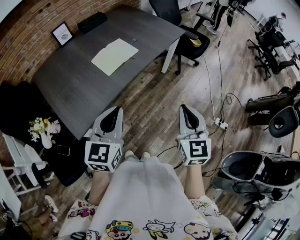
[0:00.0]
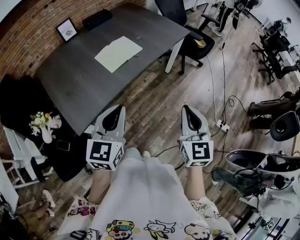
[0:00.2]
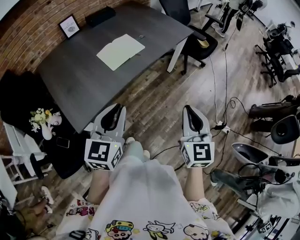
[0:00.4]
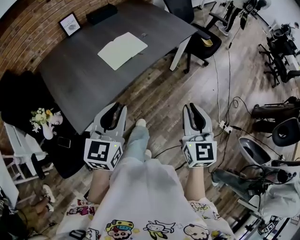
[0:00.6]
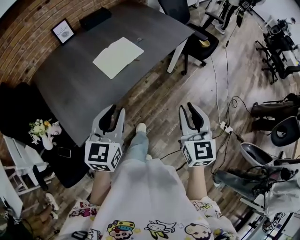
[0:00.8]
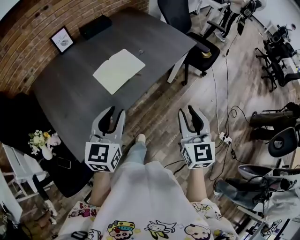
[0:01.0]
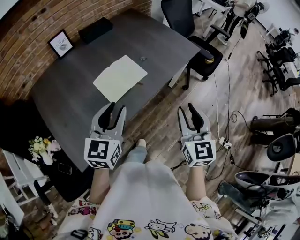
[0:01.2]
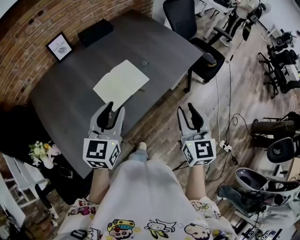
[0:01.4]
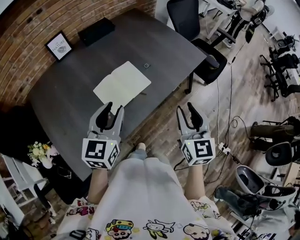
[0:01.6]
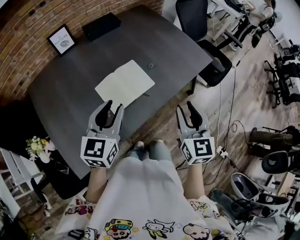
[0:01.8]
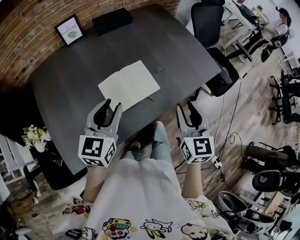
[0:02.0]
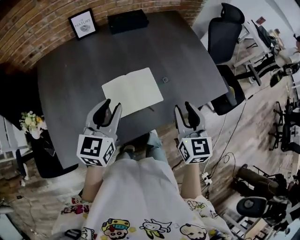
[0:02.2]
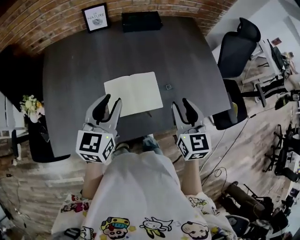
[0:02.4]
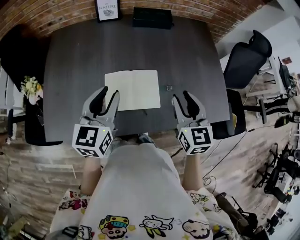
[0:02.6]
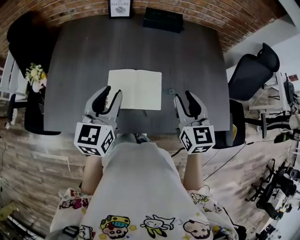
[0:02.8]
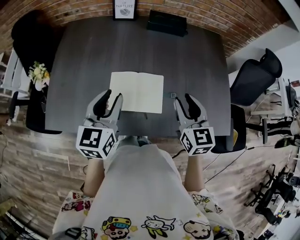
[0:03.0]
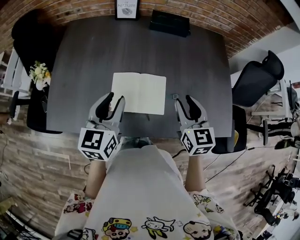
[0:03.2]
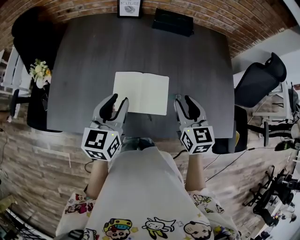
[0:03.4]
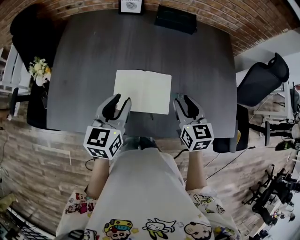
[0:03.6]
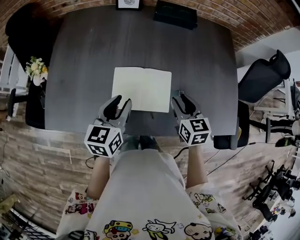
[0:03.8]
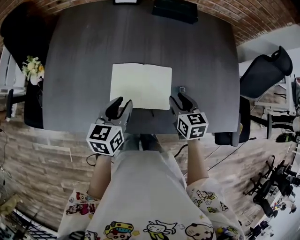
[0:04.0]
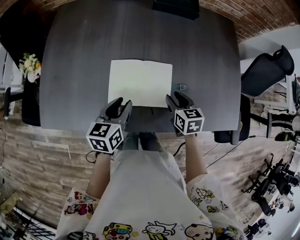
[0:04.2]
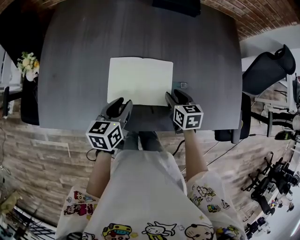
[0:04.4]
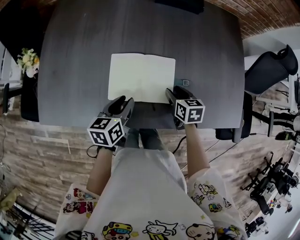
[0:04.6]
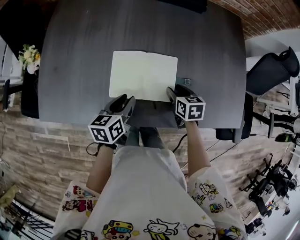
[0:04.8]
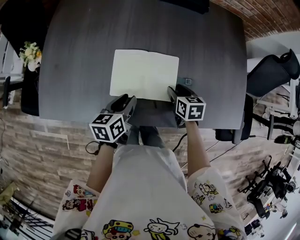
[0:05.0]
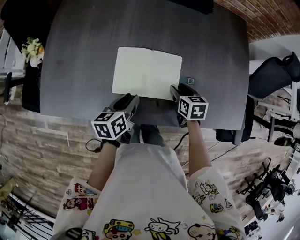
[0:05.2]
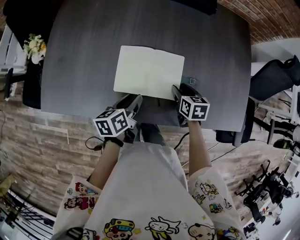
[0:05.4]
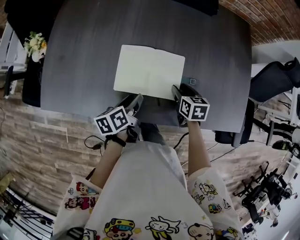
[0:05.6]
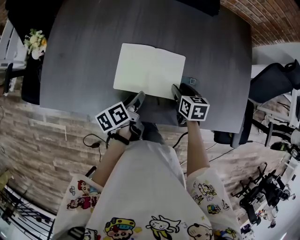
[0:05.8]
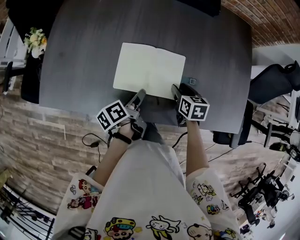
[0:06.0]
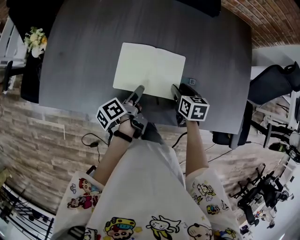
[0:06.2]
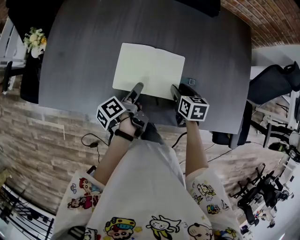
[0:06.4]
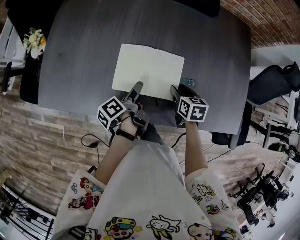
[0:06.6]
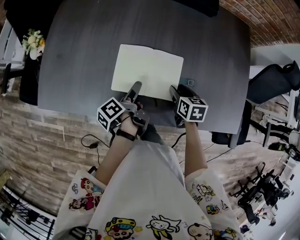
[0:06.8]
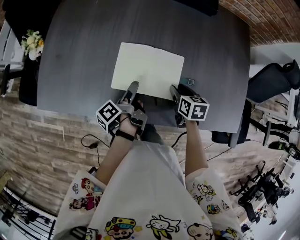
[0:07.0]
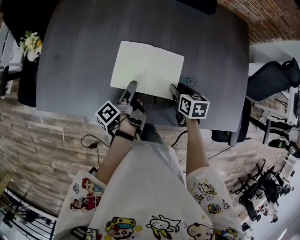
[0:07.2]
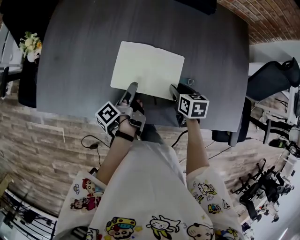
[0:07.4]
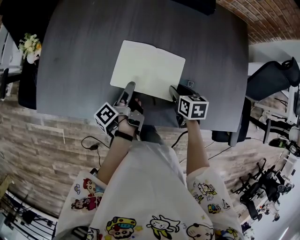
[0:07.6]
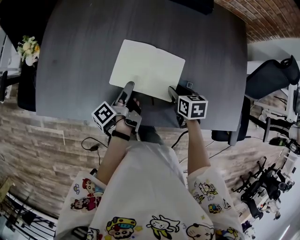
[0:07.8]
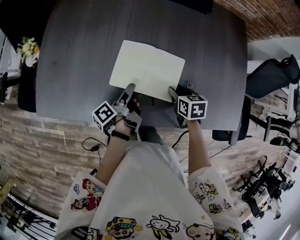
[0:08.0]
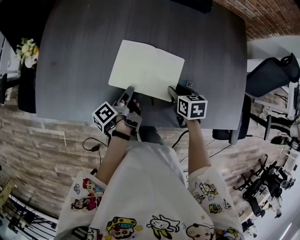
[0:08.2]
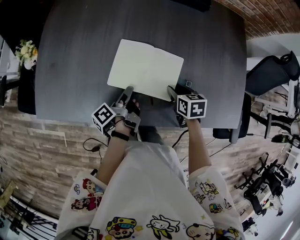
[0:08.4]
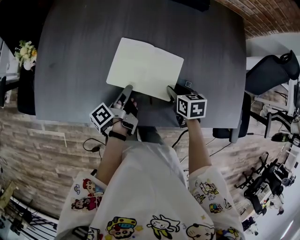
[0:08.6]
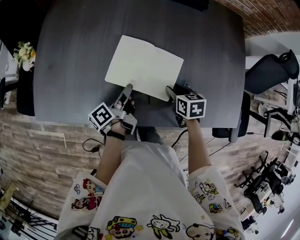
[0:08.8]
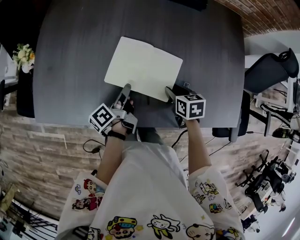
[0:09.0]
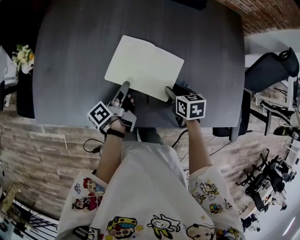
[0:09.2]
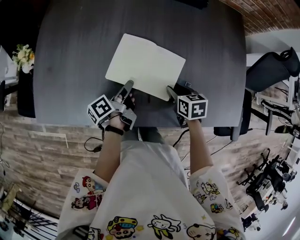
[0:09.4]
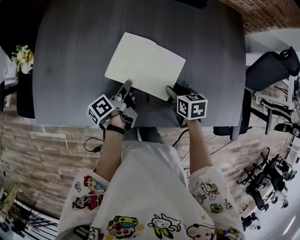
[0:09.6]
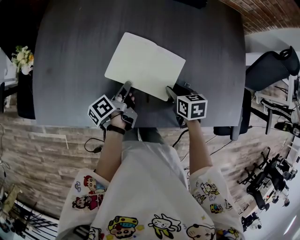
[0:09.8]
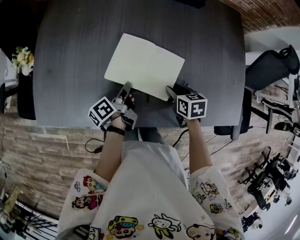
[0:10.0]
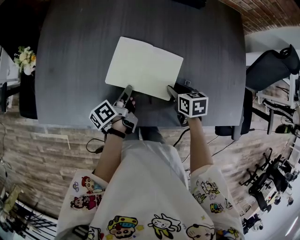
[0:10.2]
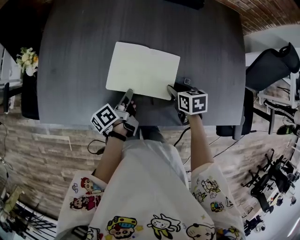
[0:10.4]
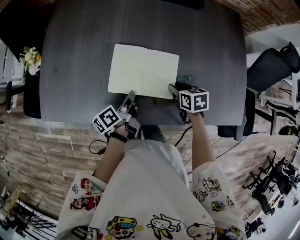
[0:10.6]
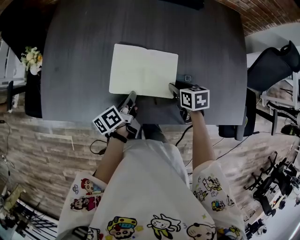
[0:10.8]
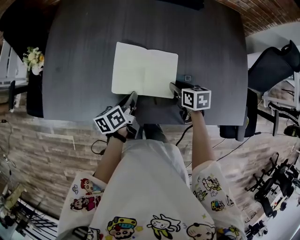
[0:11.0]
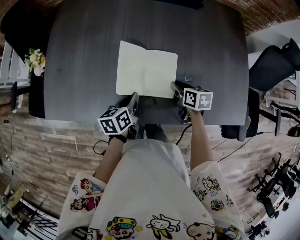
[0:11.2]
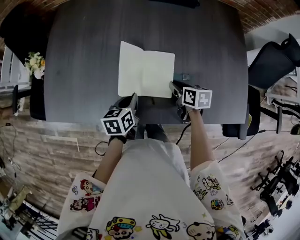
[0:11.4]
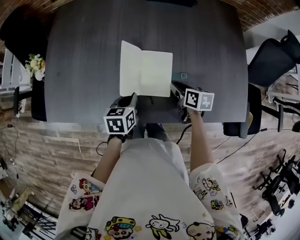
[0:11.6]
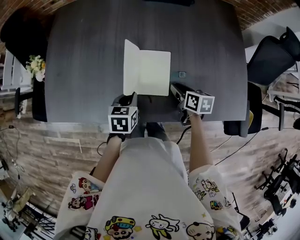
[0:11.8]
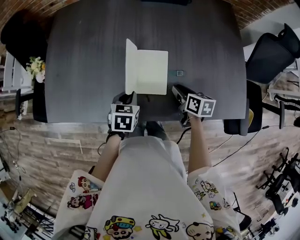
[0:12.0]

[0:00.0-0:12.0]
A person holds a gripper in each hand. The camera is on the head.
0:00.0 to 0:01.6: Both grippers move forward, roughly 30 cm. The right gripper opens up.
0:01.6 to 0:03.0: The right gripper shifts by about 25 cm, and changes its angle by some 50 degrees. Meanwhile the left gripper changes place by approximately 10 cm, and rotates approximately 50 degrees.
0:03.0 to 0:04.4: Both grippers travel together downward, roughly 20 cm. The left gripper rotates approximately 30 degrees. The right gripper turns by some 30 degrees.
0:04.4 to 0:06.0: The left gripper shifts approximately 5 cm downward, twists roughly 50 degrees counterclockwise, seen from behind, and opens.
0:06.0 to 0:07.6: The left gripper rotates some 30 degrees.
0:07.6 to 0:09.0: The left gripper turns by about 20 degrees.
0:09.0 to 0:10.4: The left gripper closes its fingers.
0:10.4 to 0:12.0: The left gripper twists some 70 degrees clockwise, seen from behind; the right gripper moves roughly 5 cm, and turns by approximately 20 degrees.

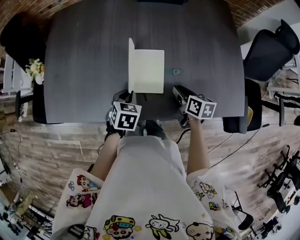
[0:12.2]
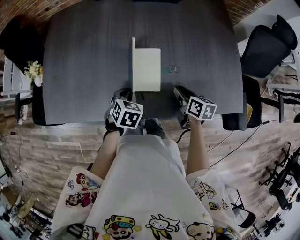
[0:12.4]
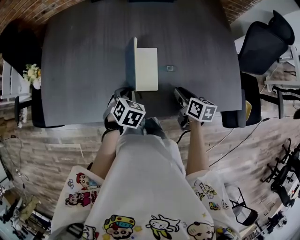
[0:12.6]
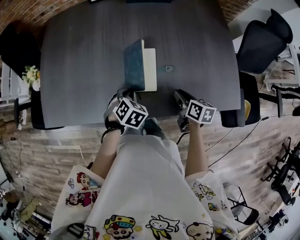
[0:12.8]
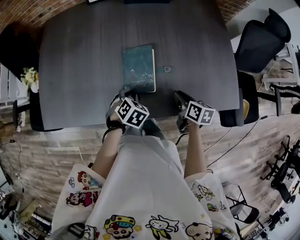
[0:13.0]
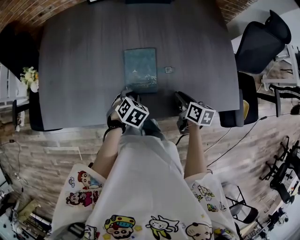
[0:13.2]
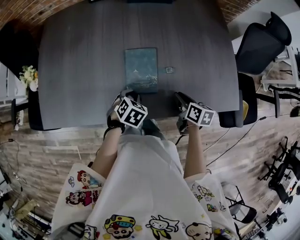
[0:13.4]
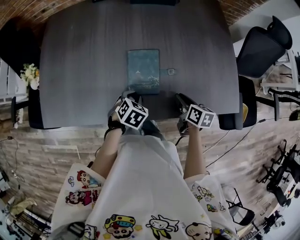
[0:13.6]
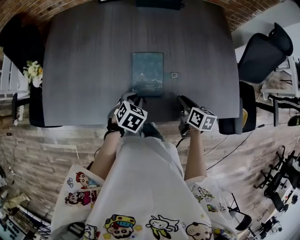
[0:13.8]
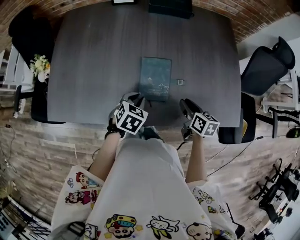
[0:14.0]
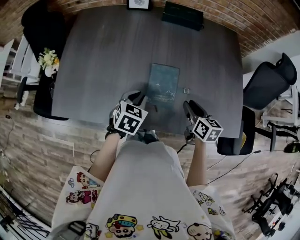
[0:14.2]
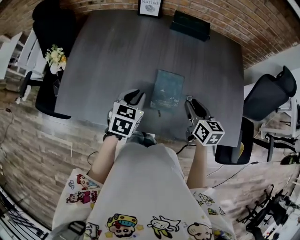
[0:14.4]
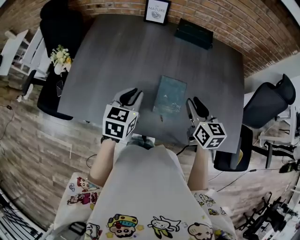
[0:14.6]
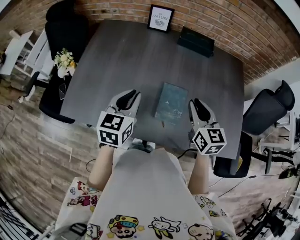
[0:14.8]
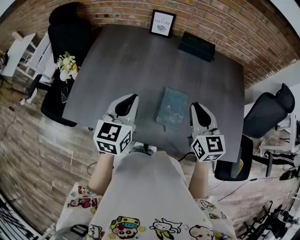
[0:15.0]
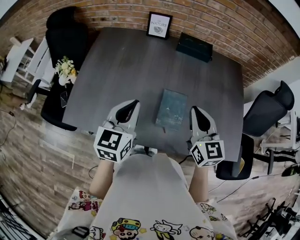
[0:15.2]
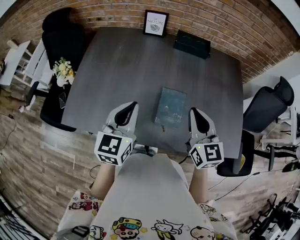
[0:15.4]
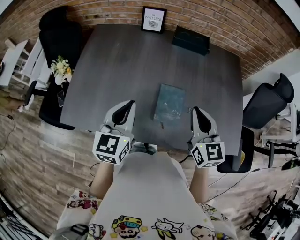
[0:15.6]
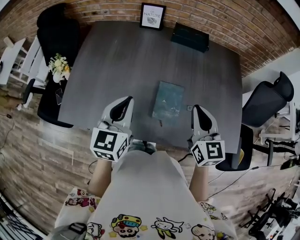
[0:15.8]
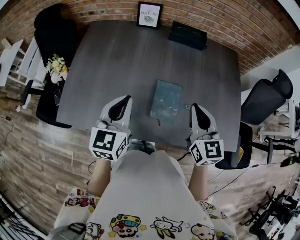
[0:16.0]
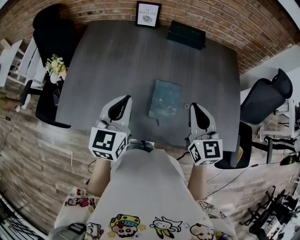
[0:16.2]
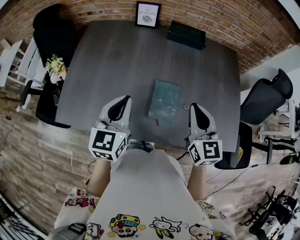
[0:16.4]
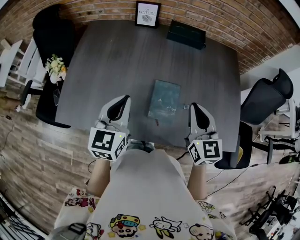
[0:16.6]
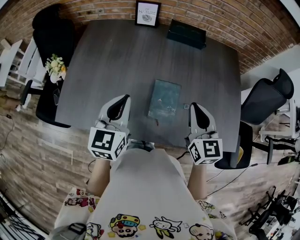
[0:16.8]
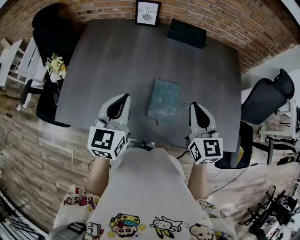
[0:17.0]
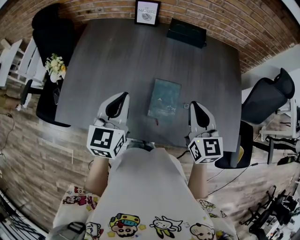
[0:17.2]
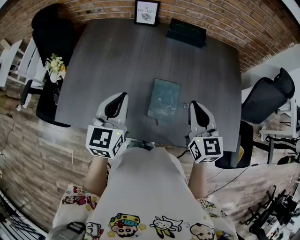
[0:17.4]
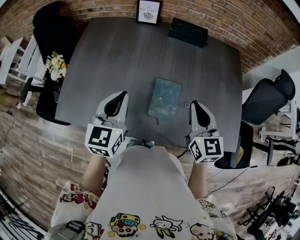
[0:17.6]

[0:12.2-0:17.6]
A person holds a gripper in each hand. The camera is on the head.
0:12.2 to 0:13.6: The right gripper changes place by about 5 cm. The left gripper travels to the right by roughly 5 cm.
0:13.6 to 0:15.0: The two grippers go roughly 30 cm upward and to the left. The left gripper angles its fingers upward, by approximately 50 degrees. The right gripper rolls counterclockwise, seen from behind, by approximately 50 degrees.
0:15.0 to 0:17.6: The grippers make only small movements.

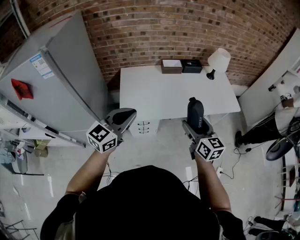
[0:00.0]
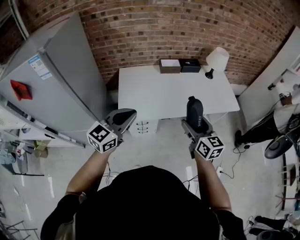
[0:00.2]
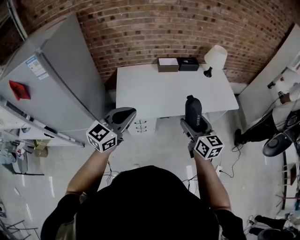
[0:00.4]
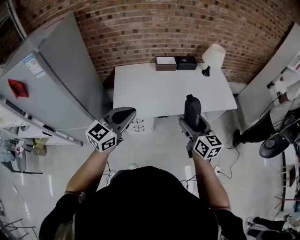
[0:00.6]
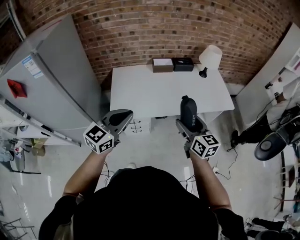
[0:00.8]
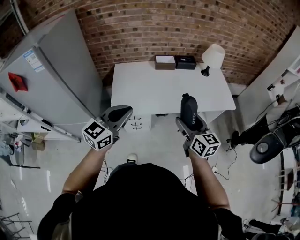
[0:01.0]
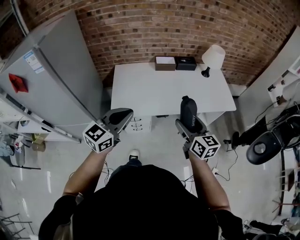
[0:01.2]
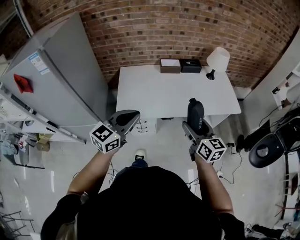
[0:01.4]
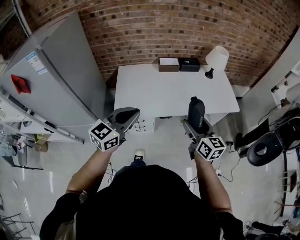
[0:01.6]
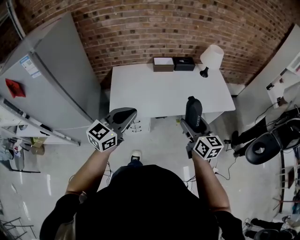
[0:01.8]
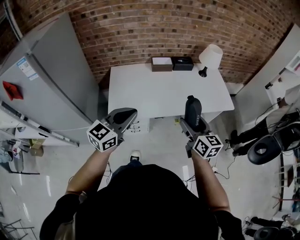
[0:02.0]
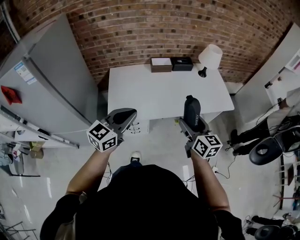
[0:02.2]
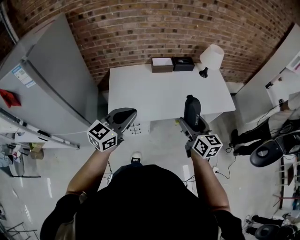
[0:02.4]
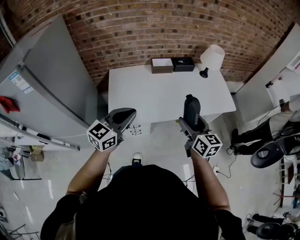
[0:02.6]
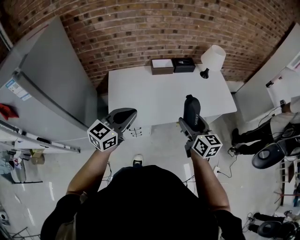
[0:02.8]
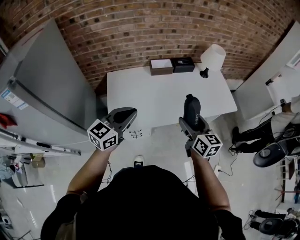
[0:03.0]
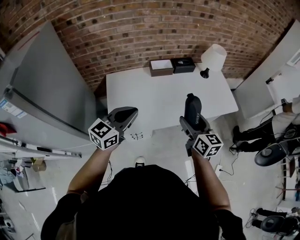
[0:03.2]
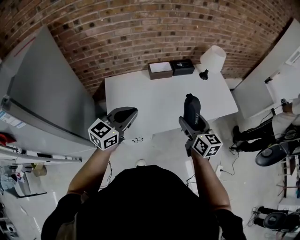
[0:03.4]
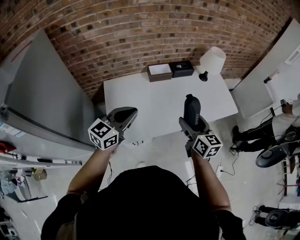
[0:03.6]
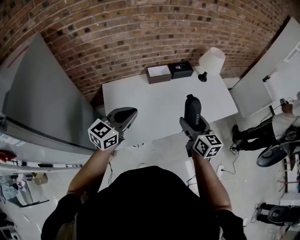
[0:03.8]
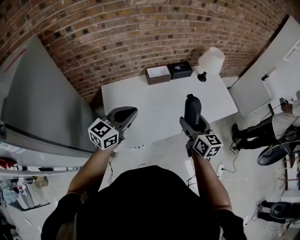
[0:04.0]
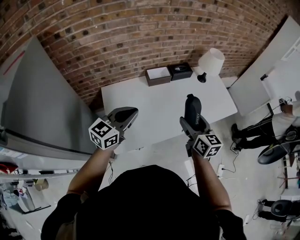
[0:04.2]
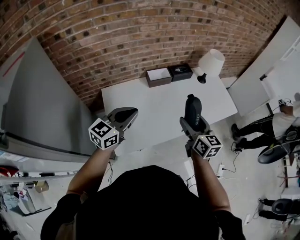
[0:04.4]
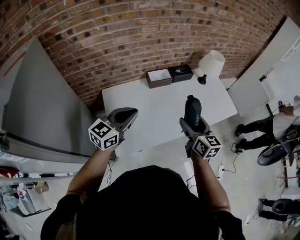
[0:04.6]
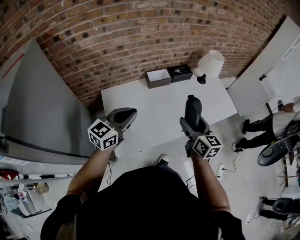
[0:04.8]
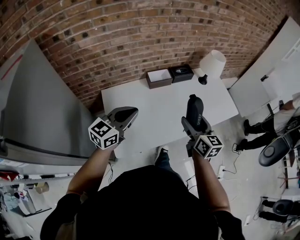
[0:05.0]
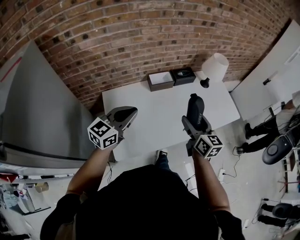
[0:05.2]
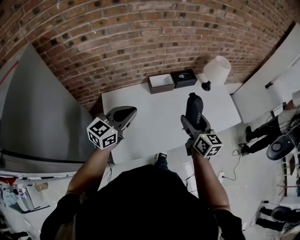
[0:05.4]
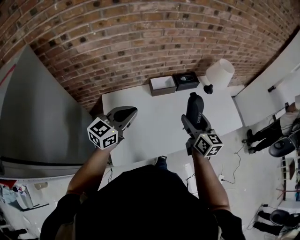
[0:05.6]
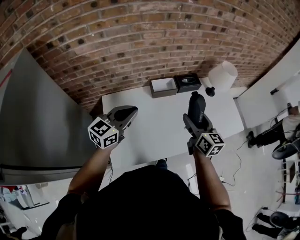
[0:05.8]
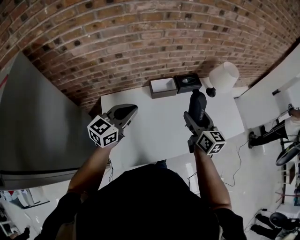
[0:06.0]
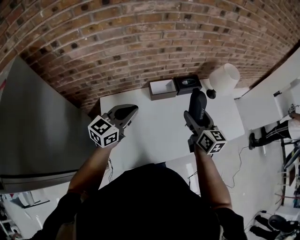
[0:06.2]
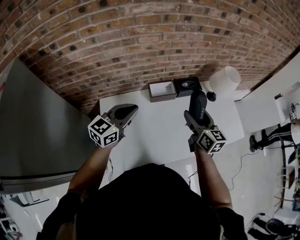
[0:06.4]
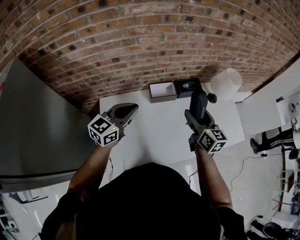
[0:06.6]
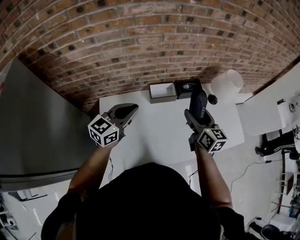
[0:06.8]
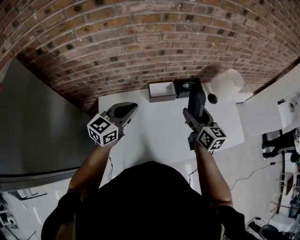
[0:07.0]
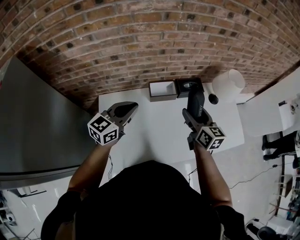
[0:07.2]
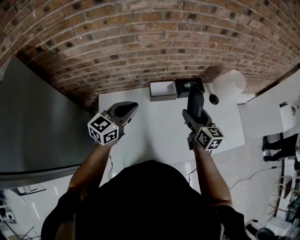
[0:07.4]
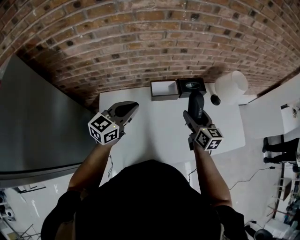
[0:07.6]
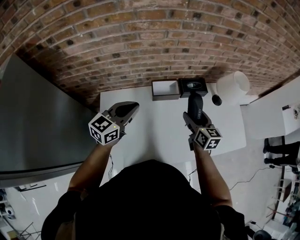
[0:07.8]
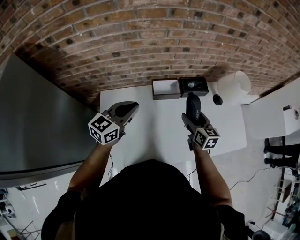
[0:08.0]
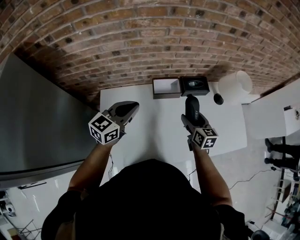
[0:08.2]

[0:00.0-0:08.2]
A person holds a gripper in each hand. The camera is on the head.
0:00.0 to 0:01.6: Both grippers move to the right, approximately 10 cm.
0:01.6 to 0:03.2: The grippers both shift forward and to the left by roughly 15 cm.
0:03.2 to 0:05.0: Both grippers travel together forward and to the left, some 15 cm.
0:05.0 to 0:06.6: Both grippers travel together forward, approximately 20 cm.
0:06.6 to 0:08.2: The right gripper moves downward, roughly 15 cm. The left gripper ends up some 5 cm from where it was.
